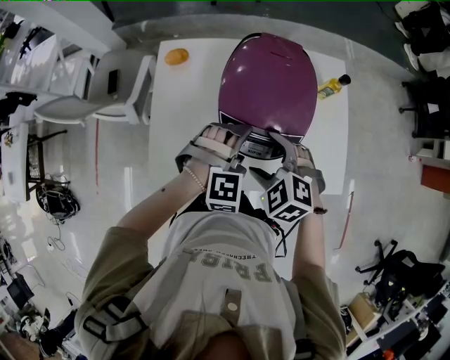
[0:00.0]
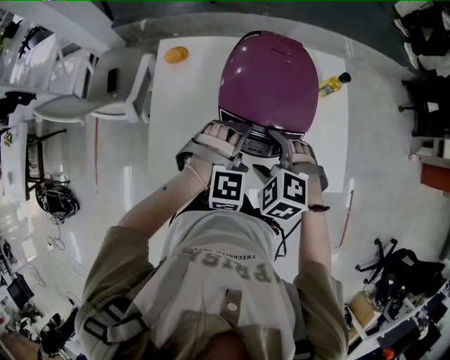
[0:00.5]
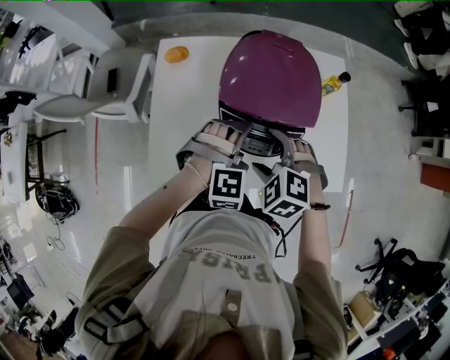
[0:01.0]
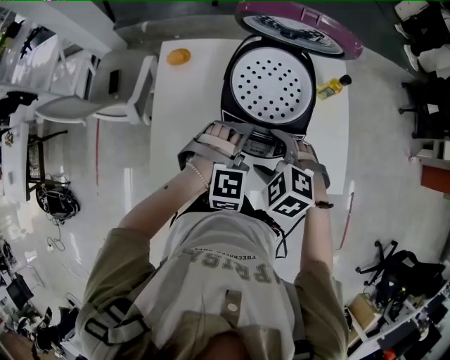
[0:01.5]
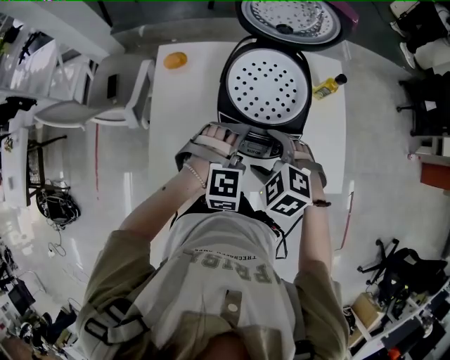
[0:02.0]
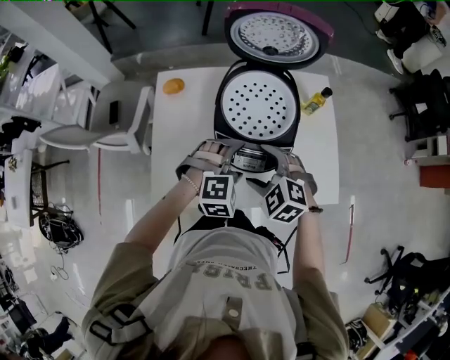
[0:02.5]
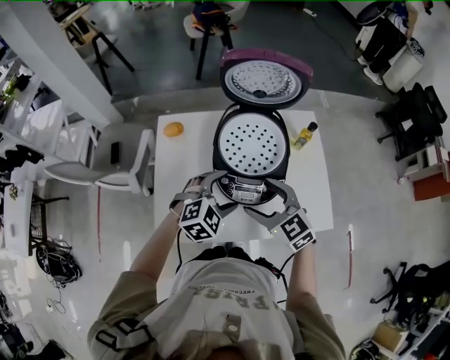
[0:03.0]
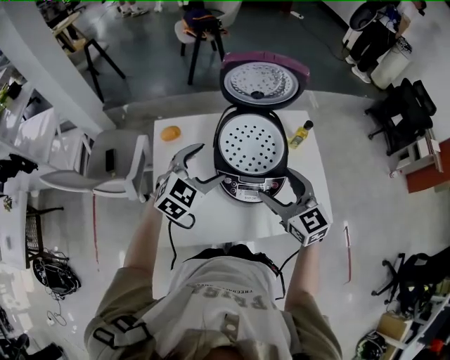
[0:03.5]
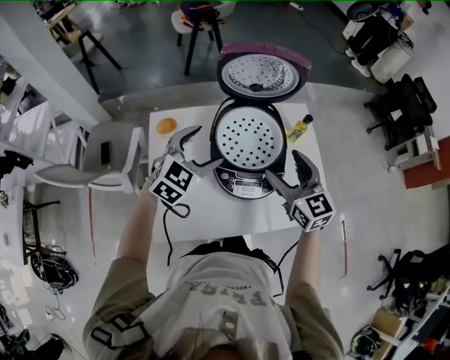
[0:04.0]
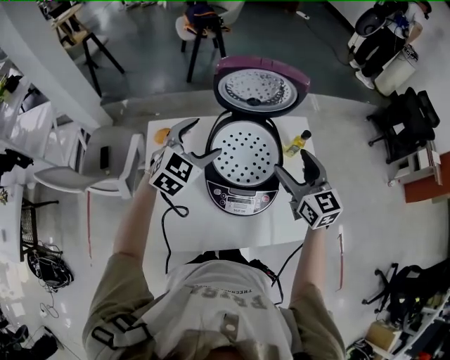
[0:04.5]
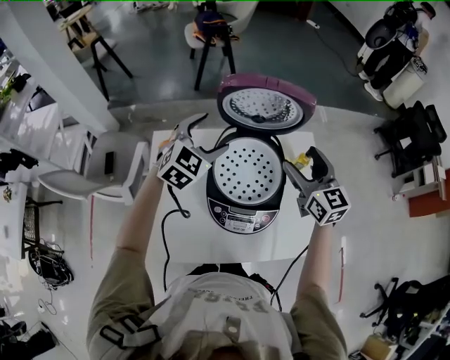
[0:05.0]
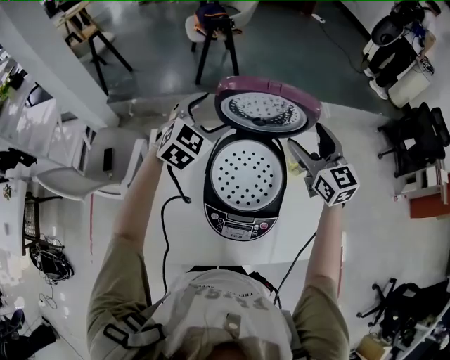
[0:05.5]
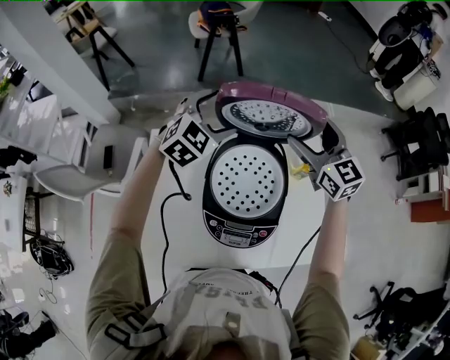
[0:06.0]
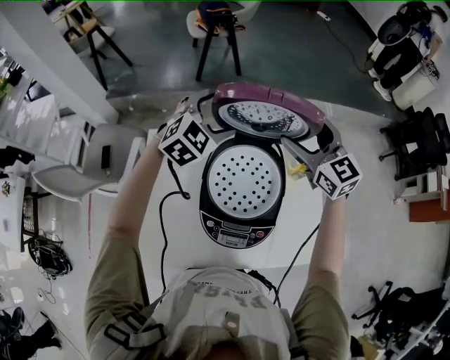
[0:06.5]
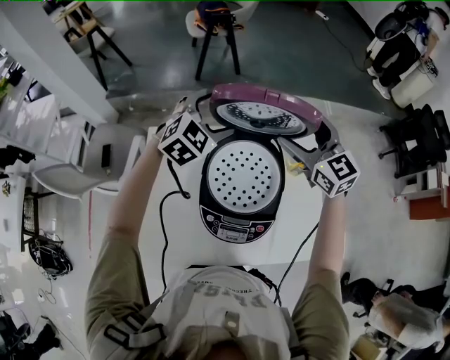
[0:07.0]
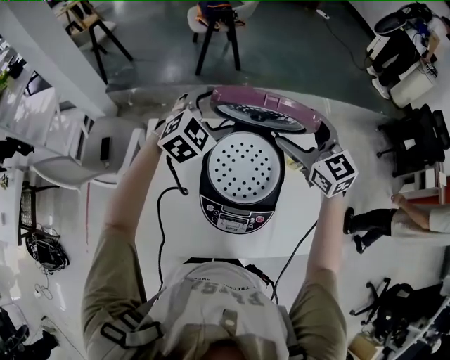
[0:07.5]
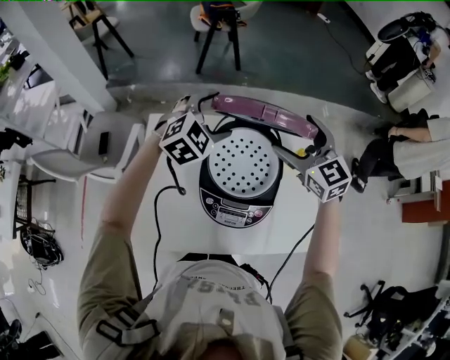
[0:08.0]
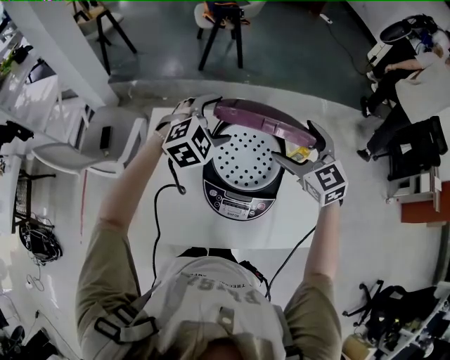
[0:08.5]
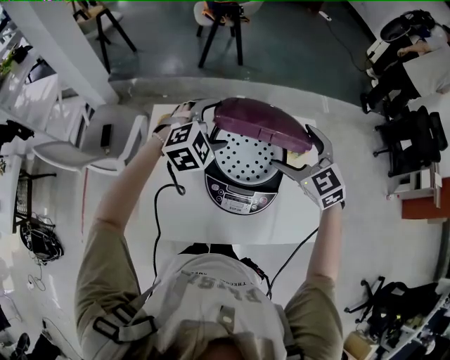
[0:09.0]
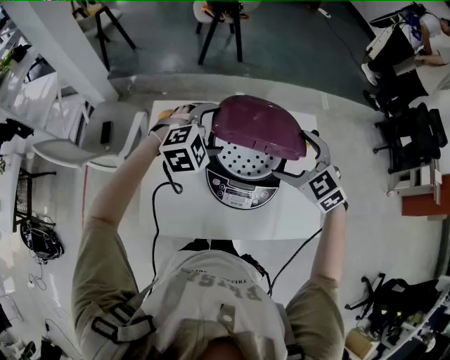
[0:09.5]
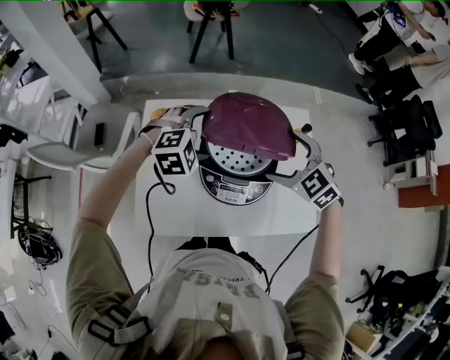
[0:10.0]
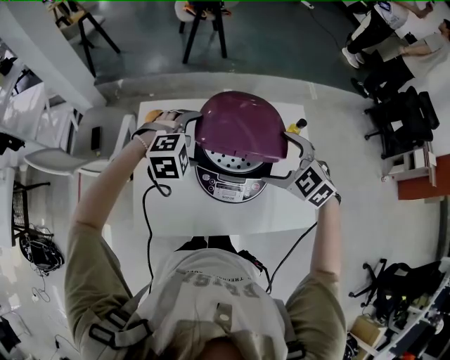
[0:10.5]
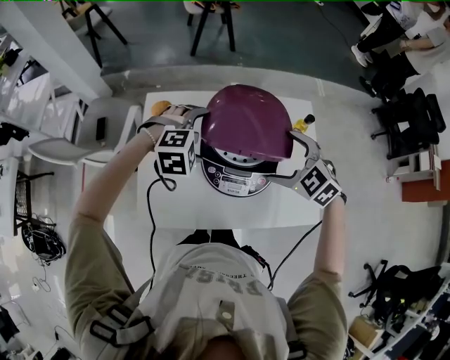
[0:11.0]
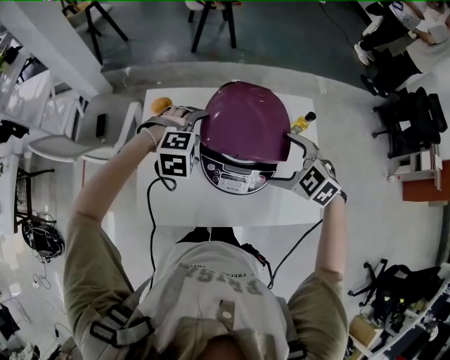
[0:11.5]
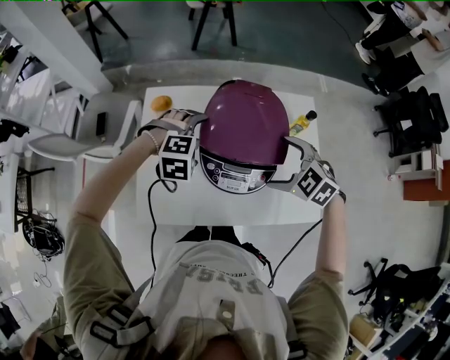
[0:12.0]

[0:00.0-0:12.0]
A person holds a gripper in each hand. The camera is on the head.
0:00.0 to 0:02.0: The grippers make only small movements.
0:02.0 to 0:04.0: The right gripper is displaced upward, forward and to the right by some 15 cm, and points its fingers approximately 50 degrees further upward. Meanwhile the left gripper shifts about 20 cm upward, forward and to the left, and swivels about 50 degrees.
0:04.0 to 0:06.0: The grippers both shift forward by about 25 cm.
0:06.0 to 0:08.0: The grippers both shift backward by roughly 5 cm.
0:08.0 to 0:10.0: Both grippers move backward and downward, some 15 cm. The right gripper changes its angle by some 30 degrees; the left gripper turns by roughly 20 degrees.
0:10.0 to 0:12.0: The right gripper moves downward and backward, some 10 cm. Meanwhile the left gripper moves downward, roughly 5 cm.

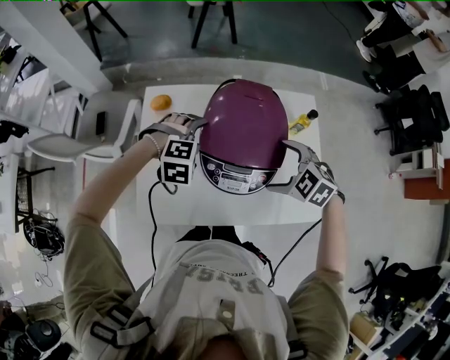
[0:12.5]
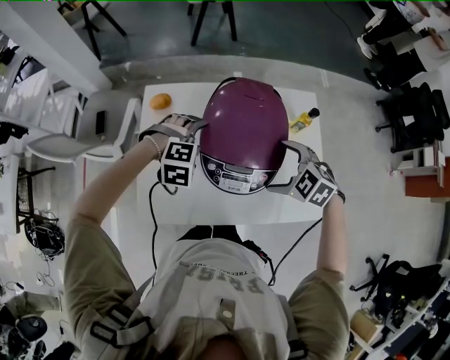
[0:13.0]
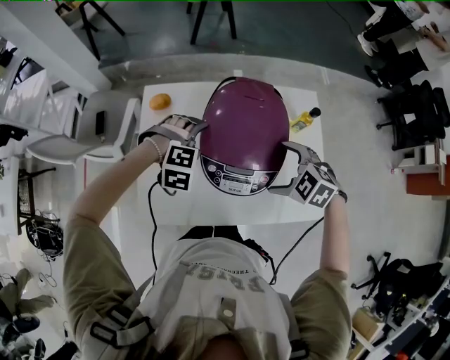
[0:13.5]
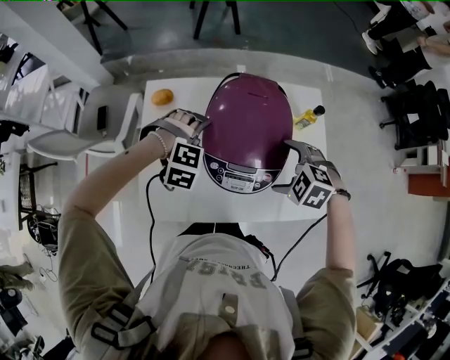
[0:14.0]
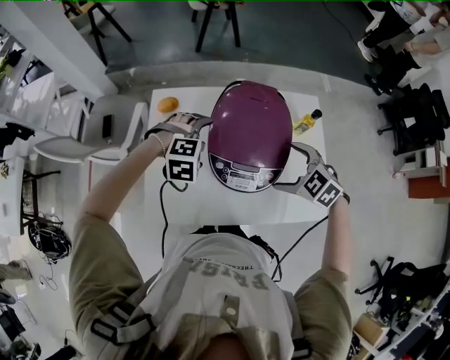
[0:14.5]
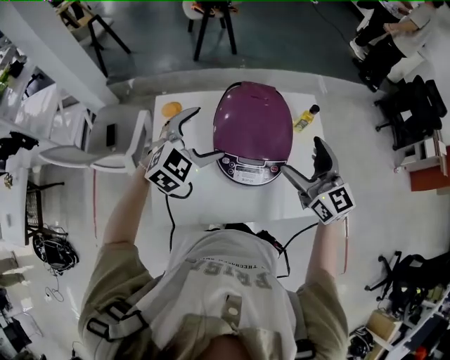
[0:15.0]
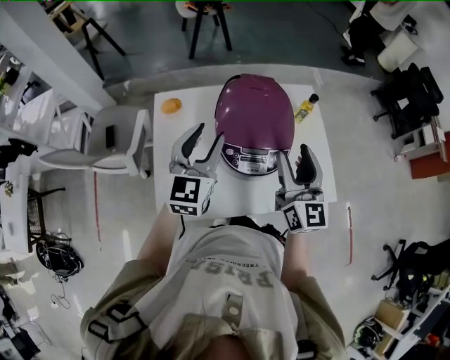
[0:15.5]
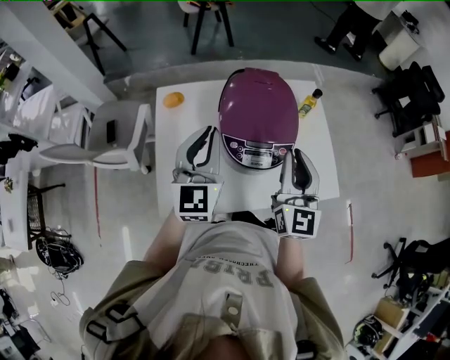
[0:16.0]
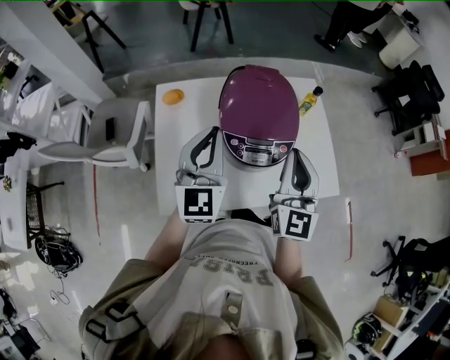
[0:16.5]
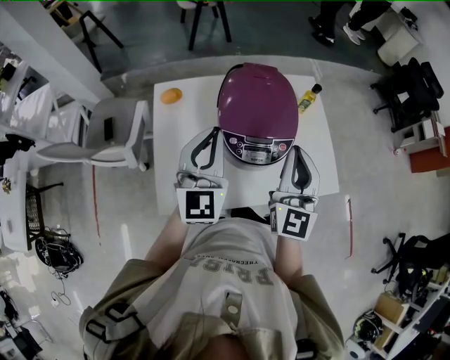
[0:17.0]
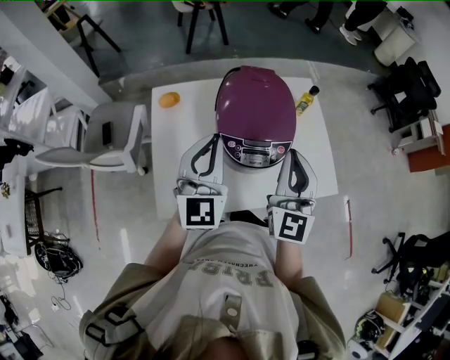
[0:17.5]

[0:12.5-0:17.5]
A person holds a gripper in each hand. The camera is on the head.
0:12.5 to 0:15.0: Both grippers move upward, about 15 cm. The right gripper points its fingers approximately 50 degrees further upward. The left gripper tips its fingers upward by some 40 degrees.
0:15.0 to 0:17.5: The left gripper is displaced backward and upward by approximately 10 cm, changes its angle by roughly 40 degrees, and closes up. Meanwhile the right gripper goes some 10 cm backward, rotates about 40 degrees, and closes.

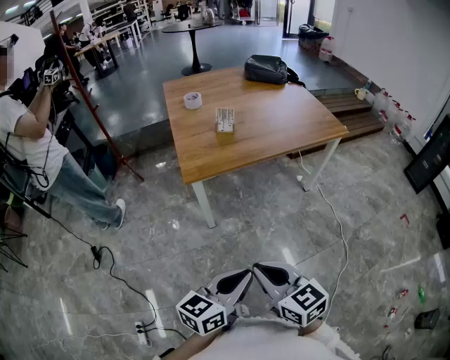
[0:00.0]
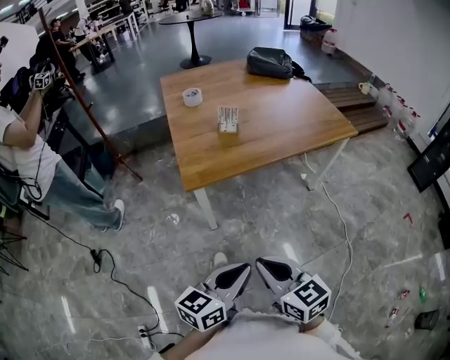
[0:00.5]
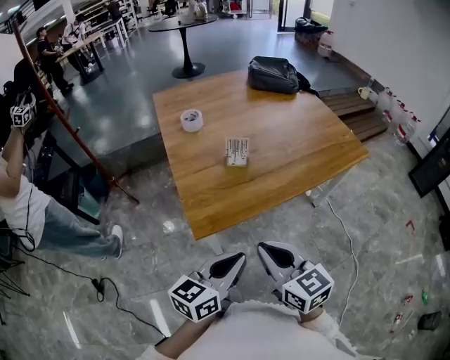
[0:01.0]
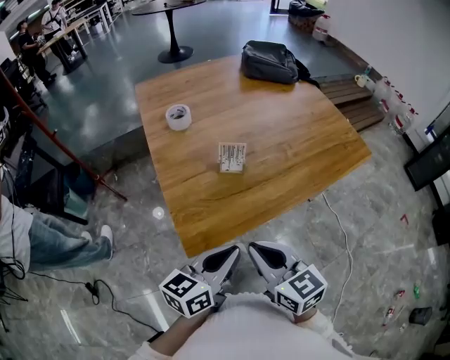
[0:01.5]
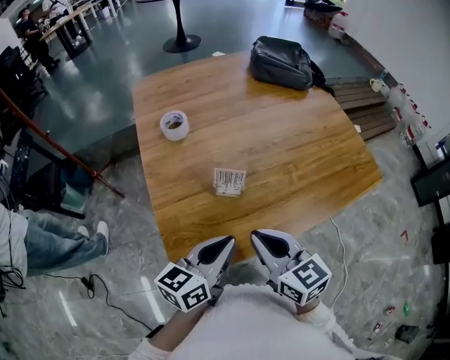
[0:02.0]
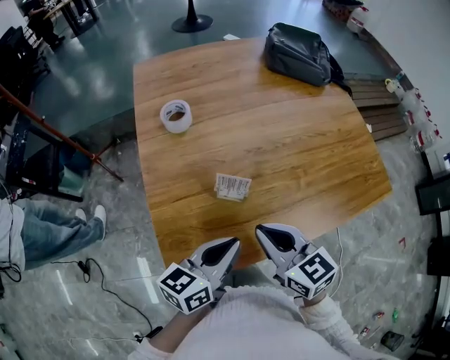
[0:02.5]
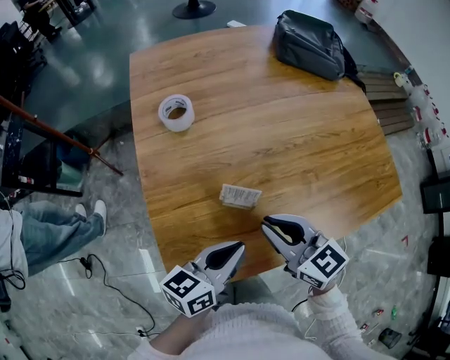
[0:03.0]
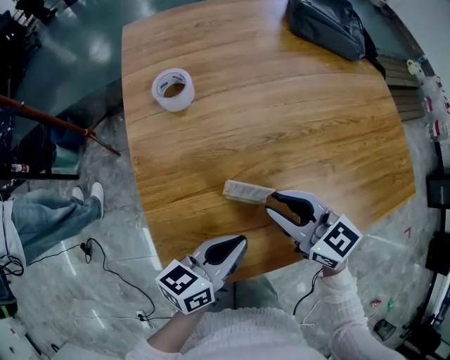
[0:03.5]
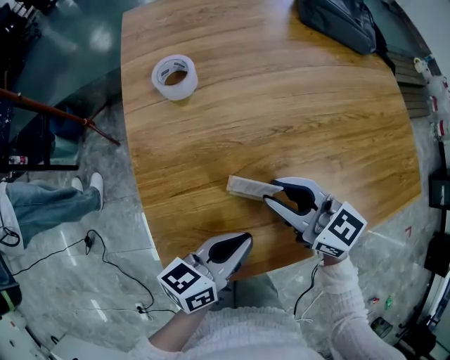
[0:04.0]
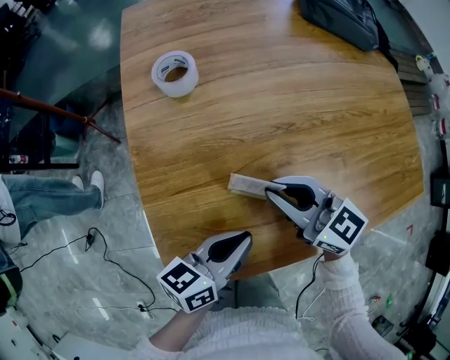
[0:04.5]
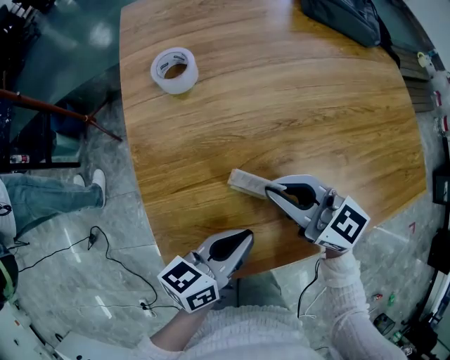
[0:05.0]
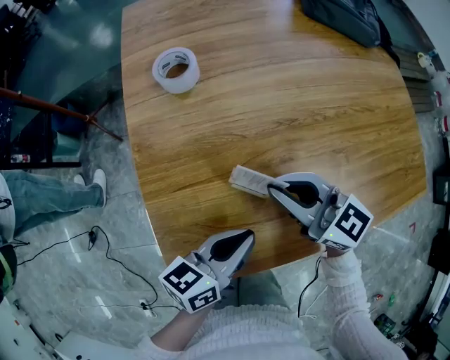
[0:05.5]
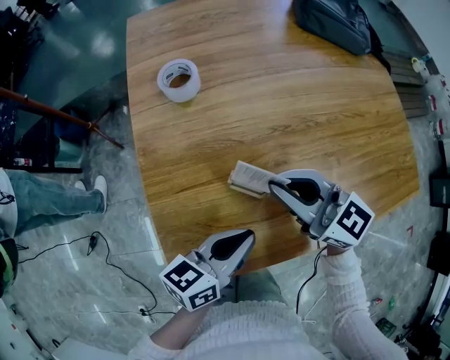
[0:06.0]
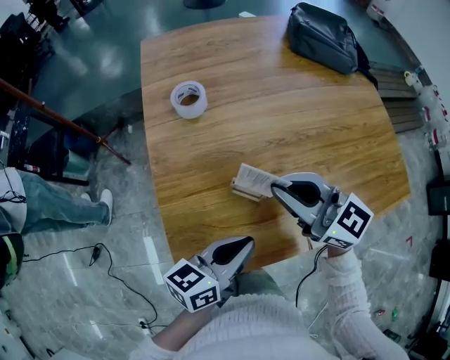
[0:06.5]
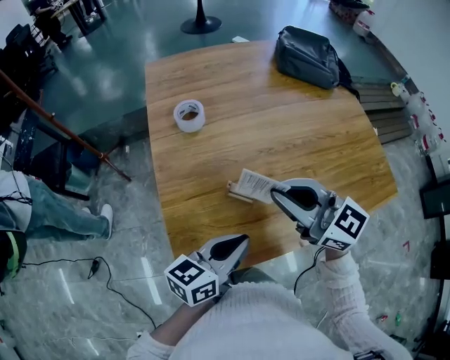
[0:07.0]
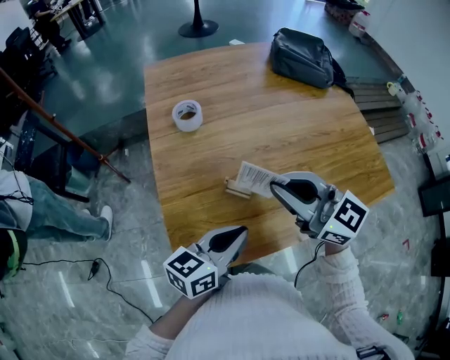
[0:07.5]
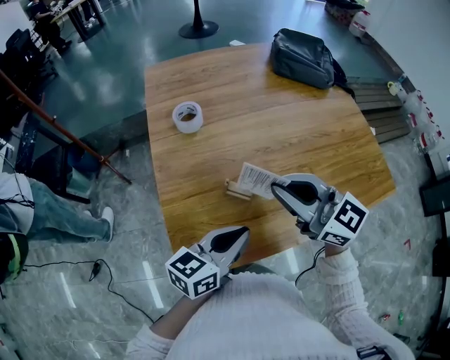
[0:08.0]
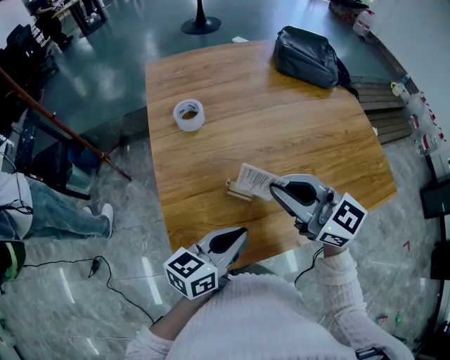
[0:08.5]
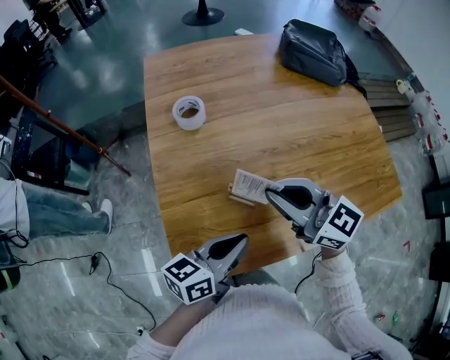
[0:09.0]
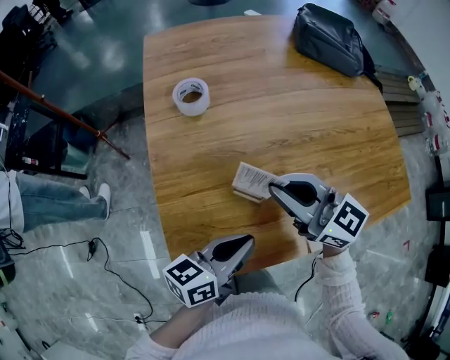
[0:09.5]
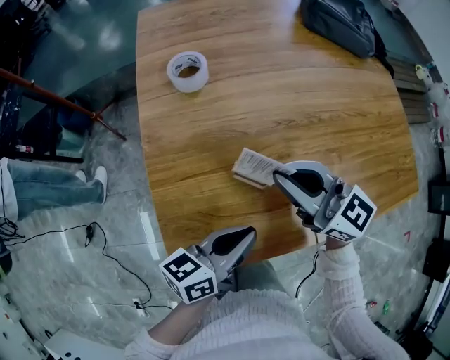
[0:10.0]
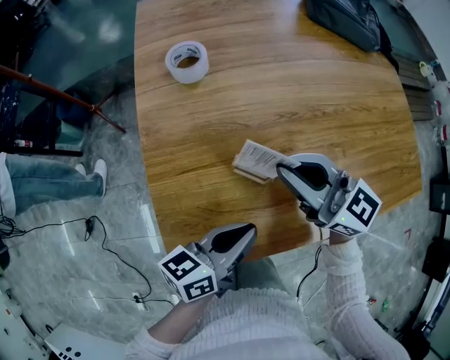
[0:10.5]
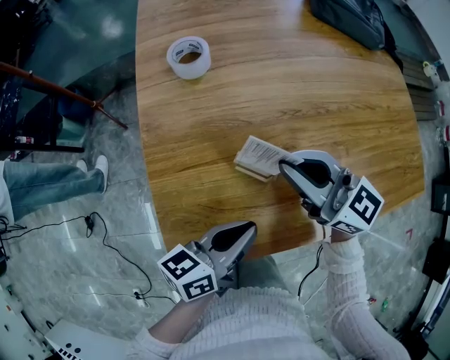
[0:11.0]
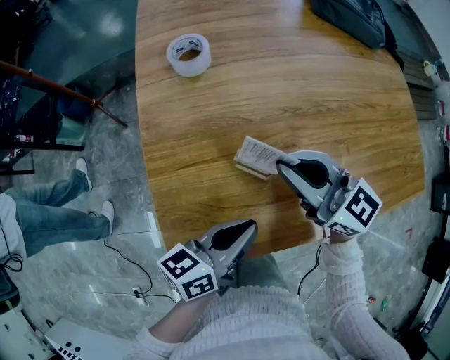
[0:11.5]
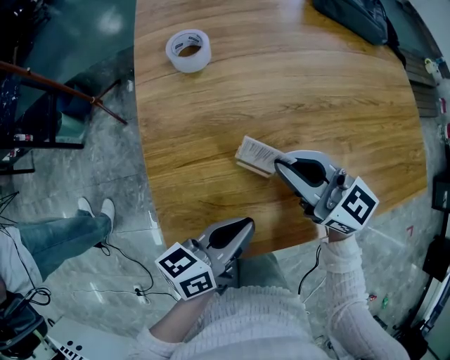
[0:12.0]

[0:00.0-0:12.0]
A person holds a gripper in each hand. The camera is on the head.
0:00.0 to 0:02.0: The pair of grippers is taken forward, roughly 50 cm.
0:02.0 to 0:04.0: The left gripper travels downward and forward by roughly 15 cm, while the right gripper heads forward and downward, covering some 20 cm, changes its angle by roughly 20 degrees, and opens.
0:04.0 to 0:06.0: The right gripper moves upward, some 5 cm, and closes its fingers.
0:06.0 to 0:08.0: The left gripper is displaced upward by some 10 cm; the right gripper shifts roughly 15 cm upward and backward.
0:08.0 to 0:10.0: The right gripper is displaced downward and forward by some 10 cm; the left gripper moves downward, approximately 5 cm.
0:10.0 to 0:12.0: The grippers move only a little.
